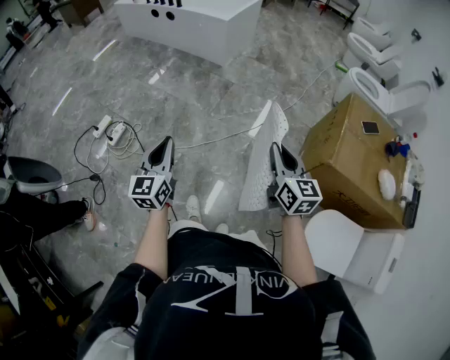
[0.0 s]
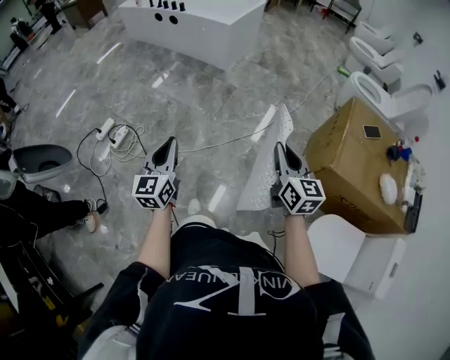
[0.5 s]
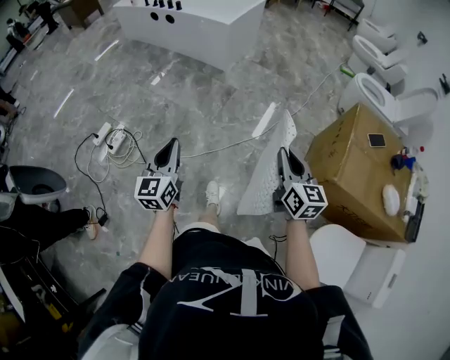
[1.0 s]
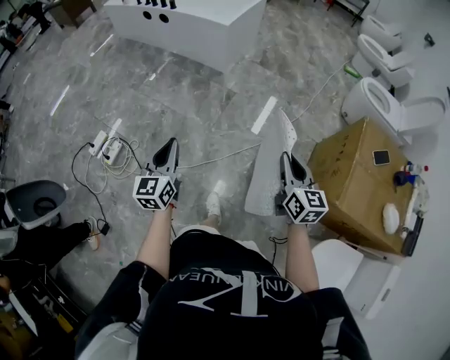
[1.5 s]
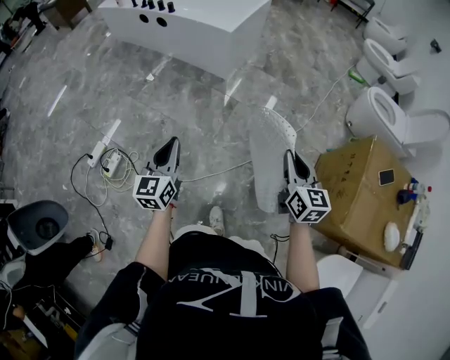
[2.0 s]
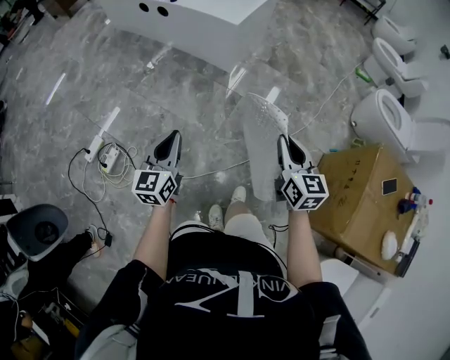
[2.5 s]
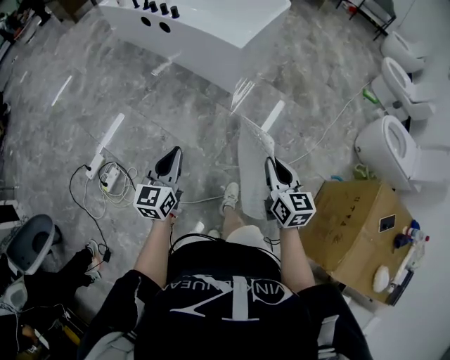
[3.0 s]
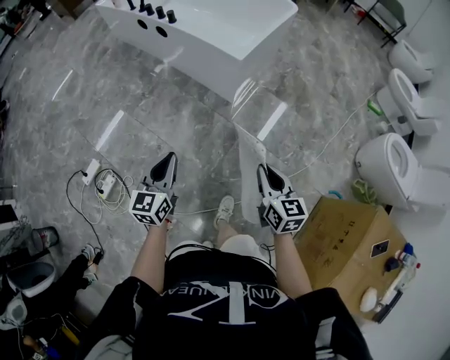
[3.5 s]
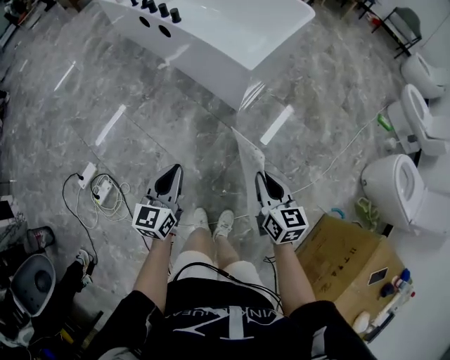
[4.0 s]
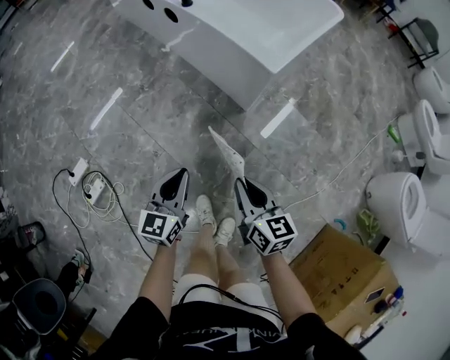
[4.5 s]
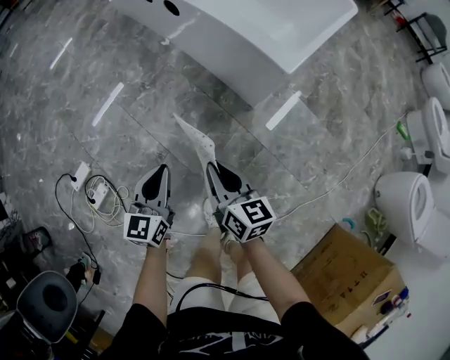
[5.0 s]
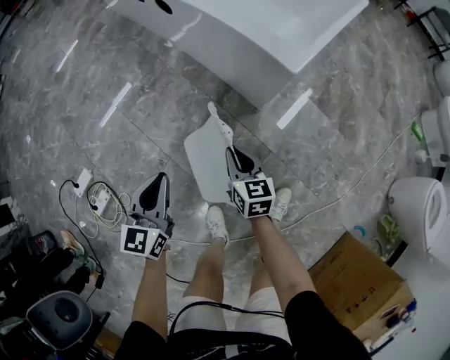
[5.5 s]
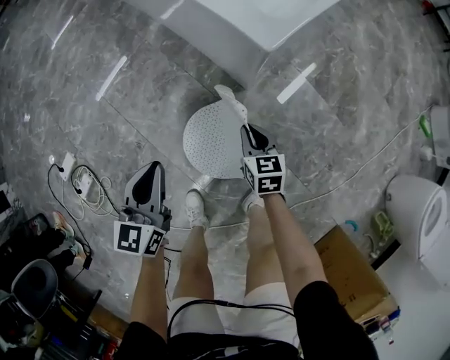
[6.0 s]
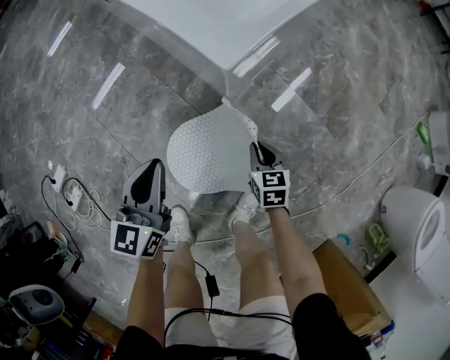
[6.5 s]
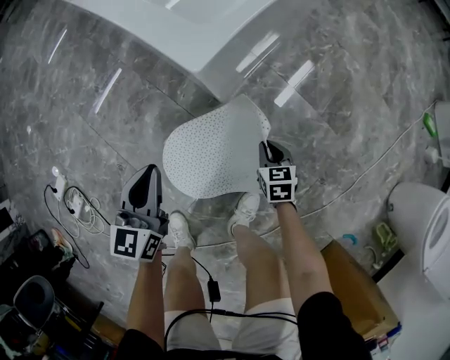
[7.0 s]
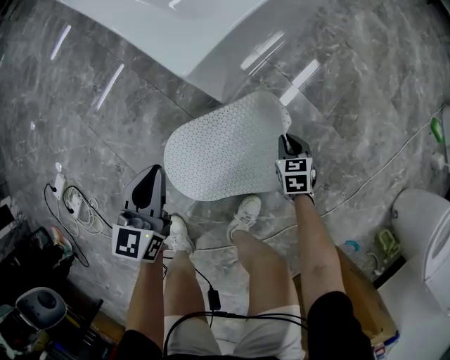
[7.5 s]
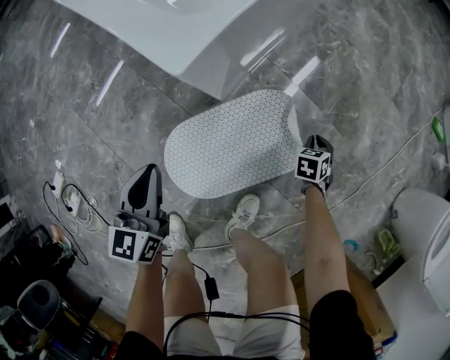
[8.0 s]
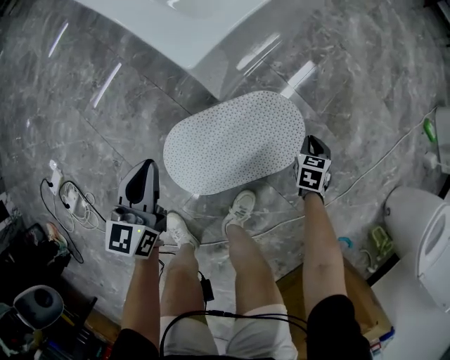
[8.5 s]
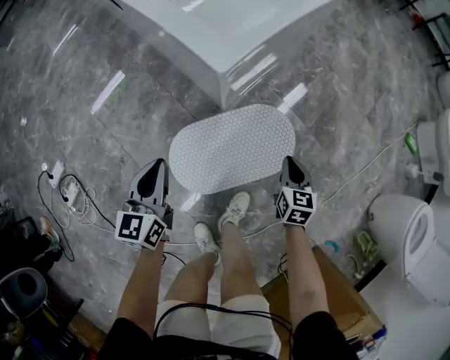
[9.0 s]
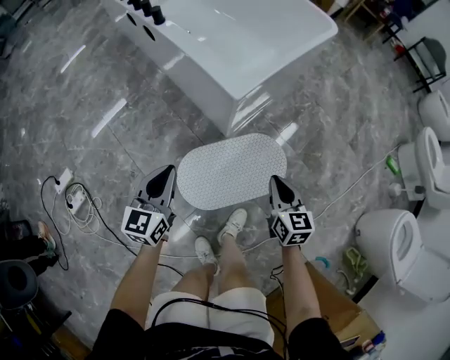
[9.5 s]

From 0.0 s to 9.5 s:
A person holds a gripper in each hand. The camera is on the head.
From 0.0 s to 2.0 s: Both grippers travel together forward, some 35 cm.
From 2.0 s to 4.0 s: Both grippers travel together forward, some 40 cm. The right gripper rotates about 20 degrees.
From 4.0 s to 5.5 s: The right gripper goes approximately 40 cm downward, forward and to the left. Meanwhile the left gripper moves forward, downward and to the left, approximately 25 cm.
From 5.5 s to 7.5 s: The left gripper heads to the right, downward and forward, covering some 35 cm. The right gripper is displaced to the right and downward by some 50 cm, and swivels some 30 degrees.
From 7.5 s to 9.5 s: The left gripper travels upward by some 20 cm. Meanwhile the right gripper is displaced upward by some 40 cm, and turns by some 30 degrees.

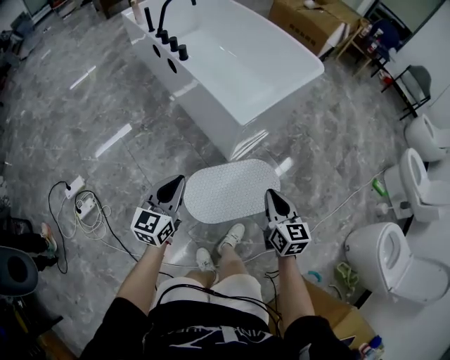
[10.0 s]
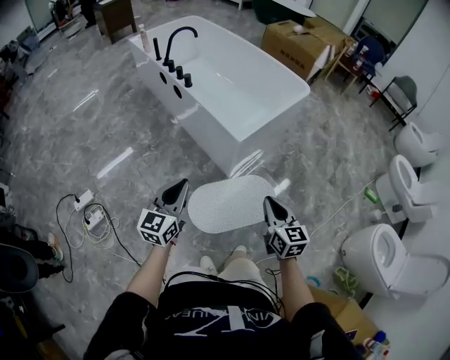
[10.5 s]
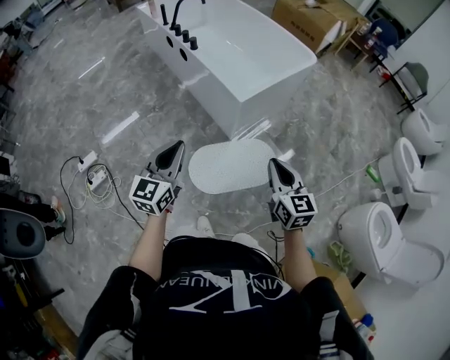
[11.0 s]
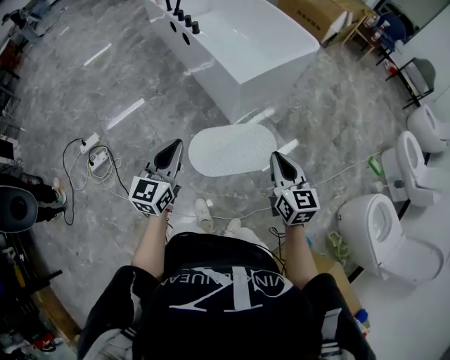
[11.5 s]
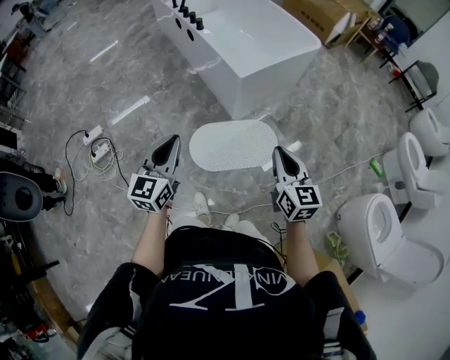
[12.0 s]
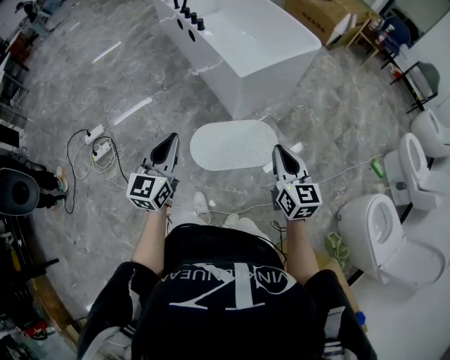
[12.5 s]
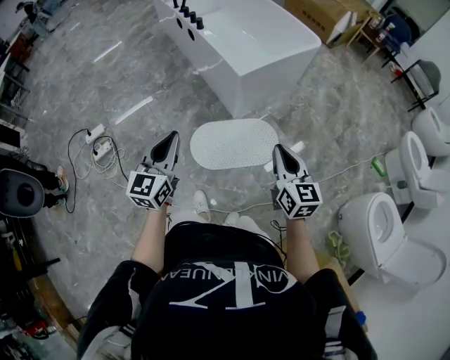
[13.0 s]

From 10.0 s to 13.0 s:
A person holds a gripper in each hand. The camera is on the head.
From 10.0 s to 11.5 s: The right gripper heads upward and backward, covering approximately 25 cm; the left gripper travels backward and upward by about 25 cm.
From 11.5 s to 13.0 s: The left gripper shifts approximately 5 cm backward. Meanwhile the right gripper ends up approximately 5 cm from where it was.

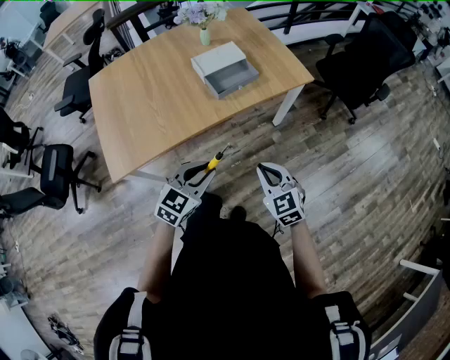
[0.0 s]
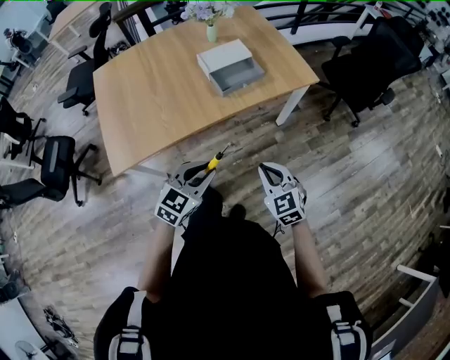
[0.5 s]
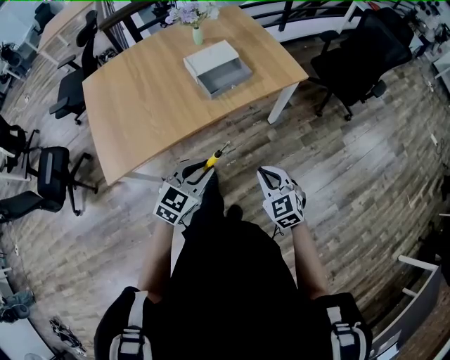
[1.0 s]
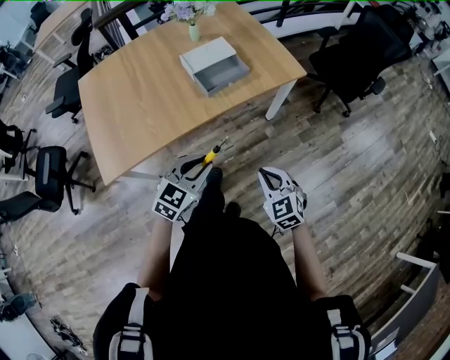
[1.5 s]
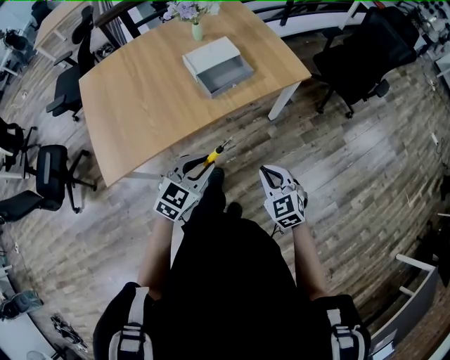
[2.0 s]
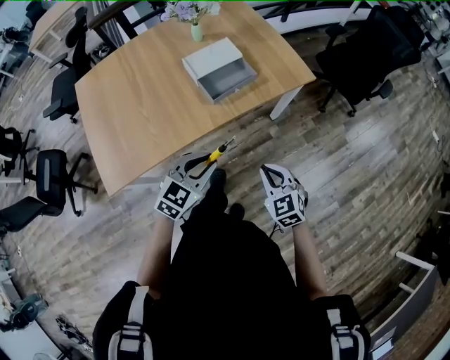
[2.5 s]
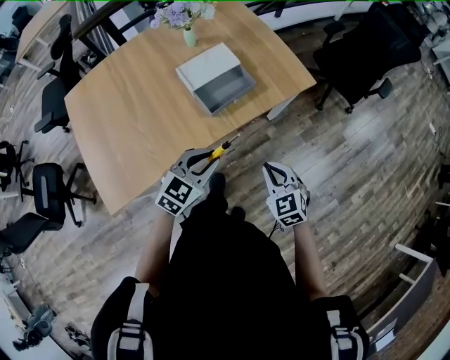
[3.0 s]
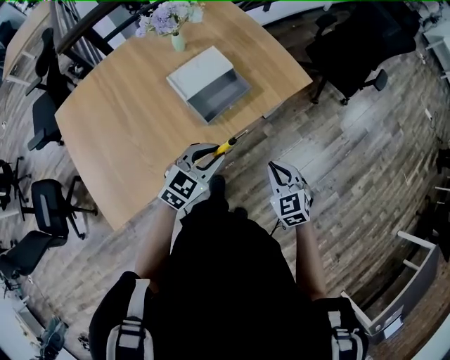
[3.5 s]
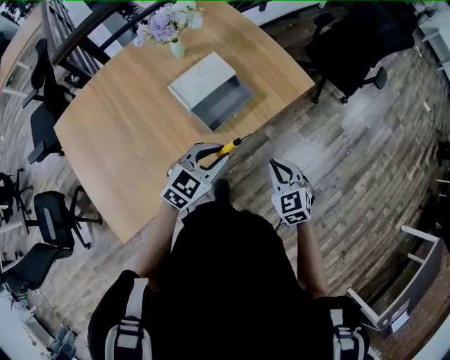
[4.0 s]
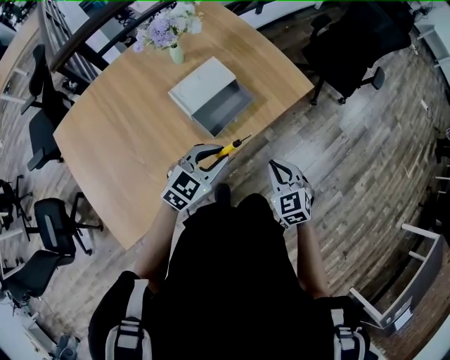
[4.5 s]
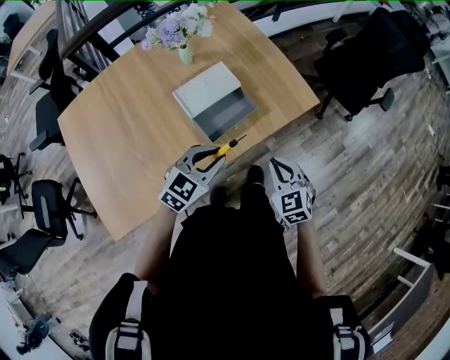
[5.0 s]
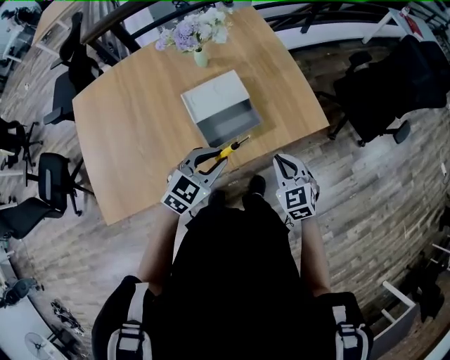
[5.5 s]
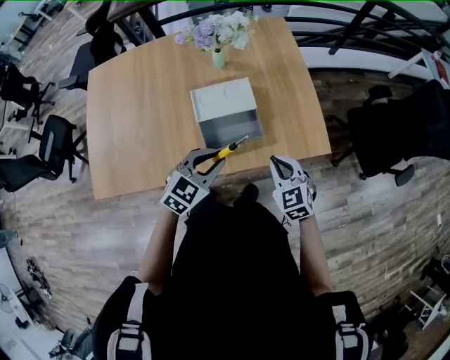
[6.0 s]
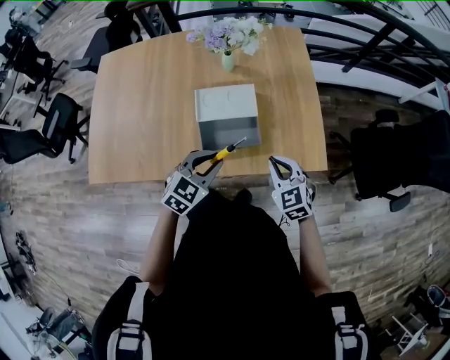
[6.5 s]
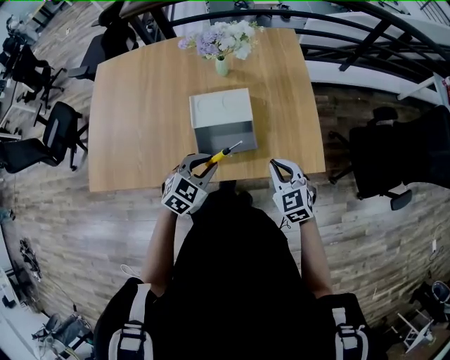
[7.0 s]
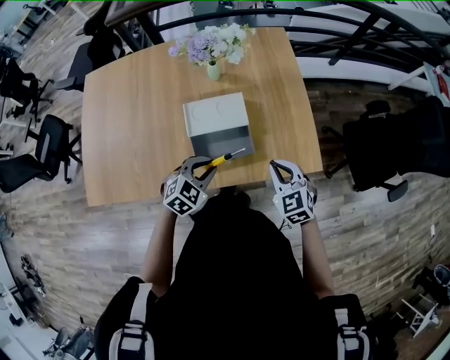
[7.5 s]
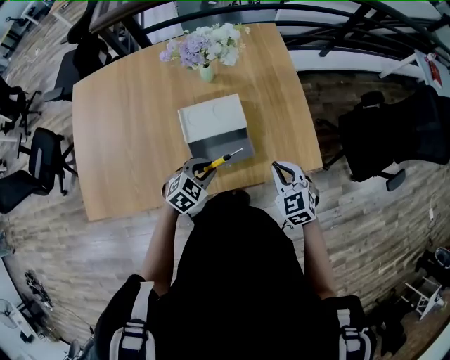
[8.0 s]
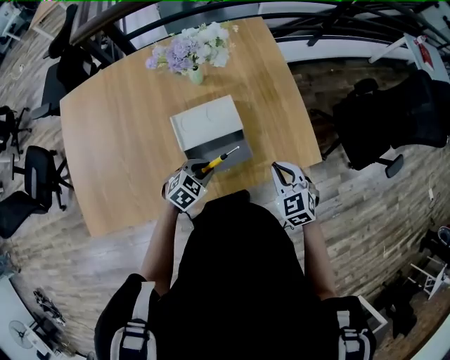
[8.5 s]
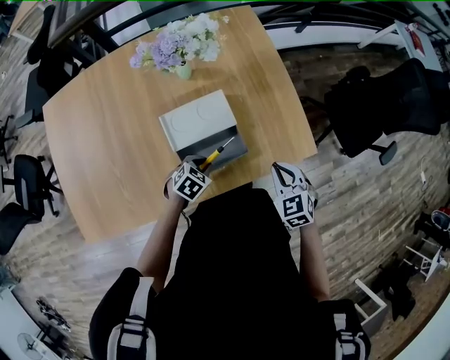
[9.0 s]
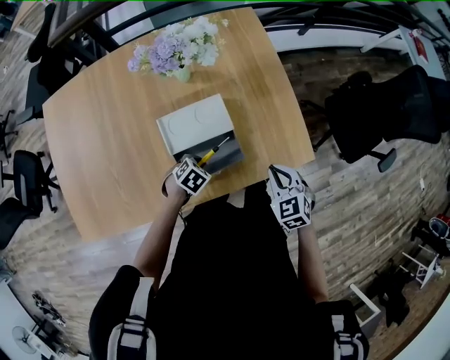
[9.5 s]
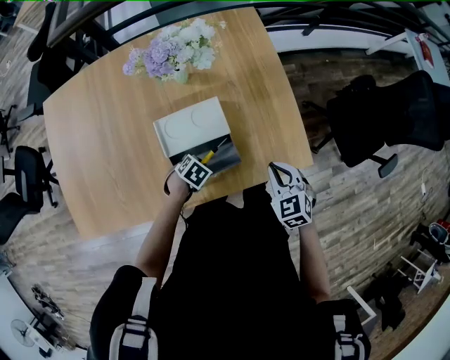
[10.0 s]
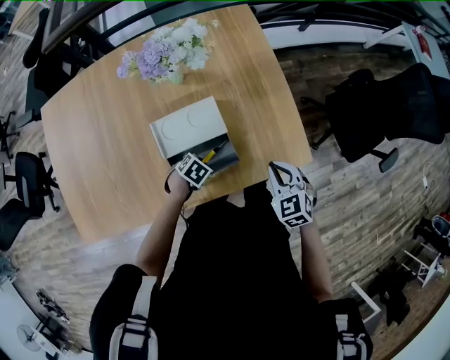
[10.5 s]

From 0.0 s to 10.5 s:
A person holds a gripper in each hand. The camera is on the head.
From 0.0 s to 2.0 s: The left gripper heads forward, covering some 5 cm.
From 2.0 s to 4.0 s: Both grippers travel together forward, about 20 cm.
From 4.0 s to 6.5 s: The right gripper moves roughly 25 cm, and changes its angle by about 40 degrees. The left gripper changes place by approximately 15 cm, and rotates approximately 40 degrees.
From 6.5 s to 8.5 s: The left gripper goes approximately 15 cm downward and forward, and rotates some 20 degrees.
From 8.5 s to 10.5 s: The right gripper ends up some 5 cm from where it was, while the left gripper goes roughly 10 cm downward, and rotates about 30 degrees.

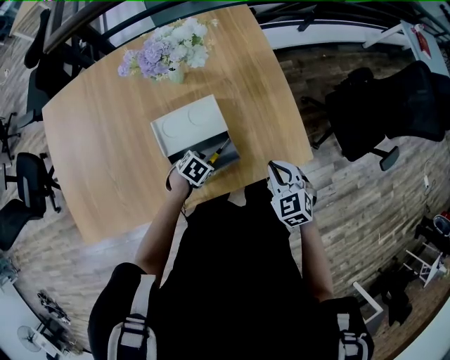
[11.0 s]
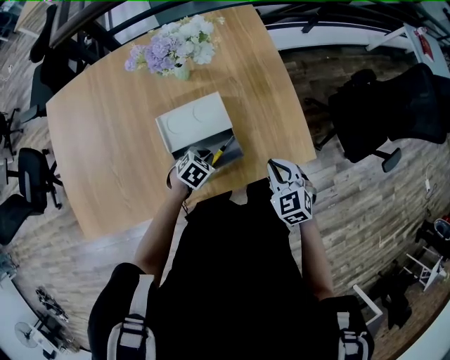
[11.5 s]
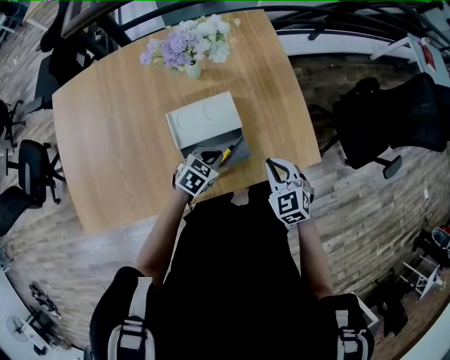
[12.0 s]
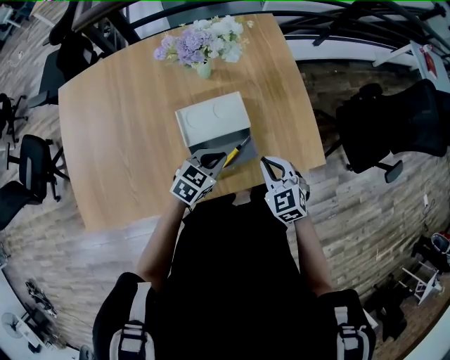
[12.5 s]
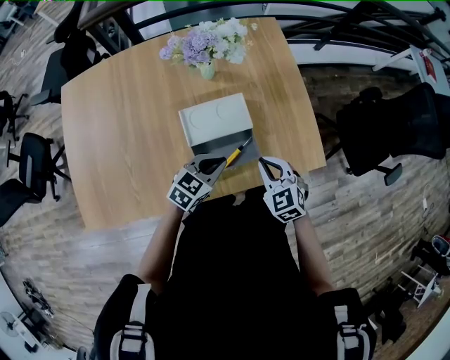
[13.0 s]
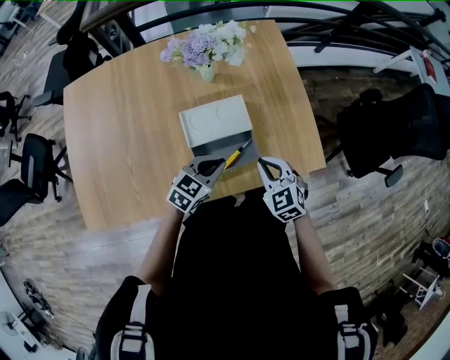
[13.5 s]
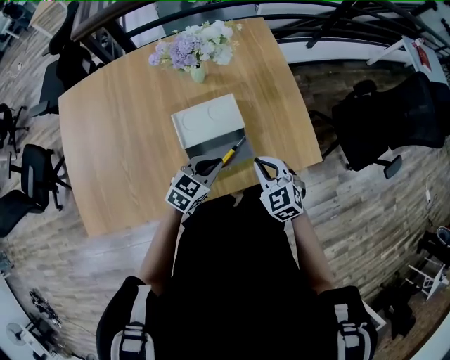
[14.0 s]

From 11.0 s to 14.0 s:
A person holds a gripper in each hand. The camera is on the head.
From 11.0 s to 12.5 s: The left gripper heads upward, covering some 15 cm, tips its fingers upward by some 30 degrees, and closes up, while the right gripper shifts about 10 cm to the left.
From 12.5 s to 14.0 s: The grippers make only small movements.
